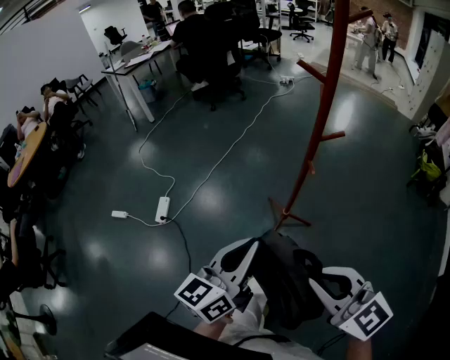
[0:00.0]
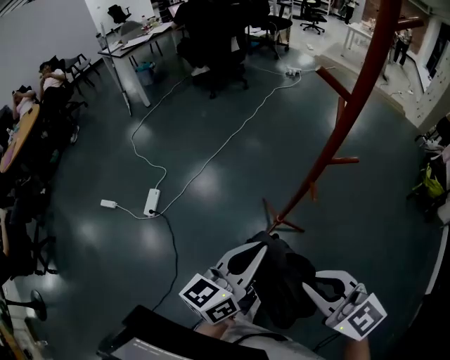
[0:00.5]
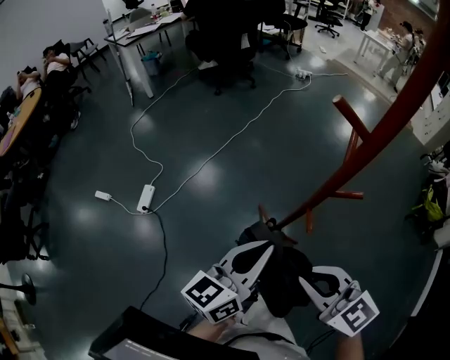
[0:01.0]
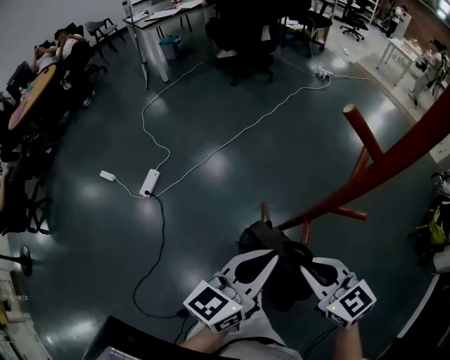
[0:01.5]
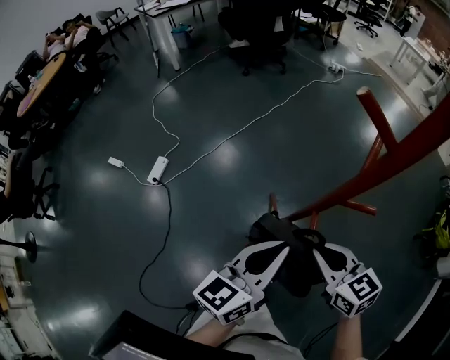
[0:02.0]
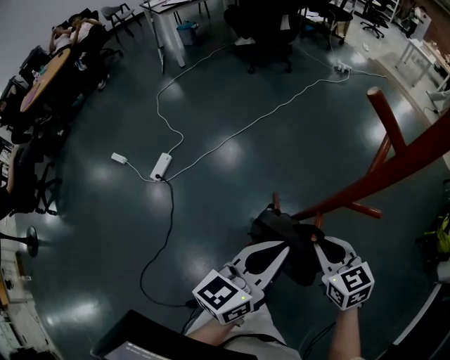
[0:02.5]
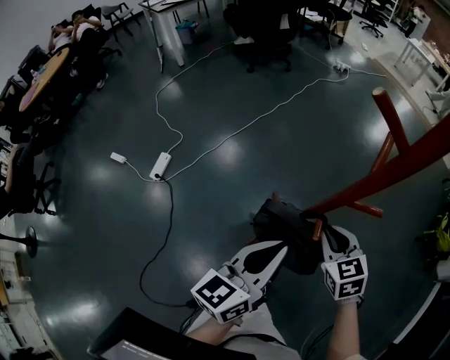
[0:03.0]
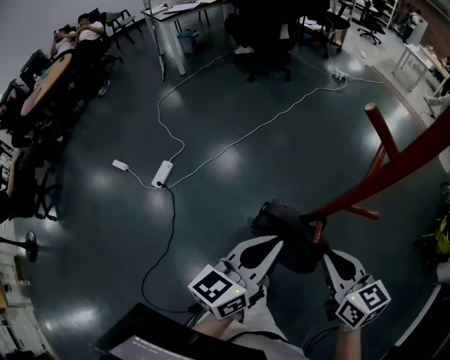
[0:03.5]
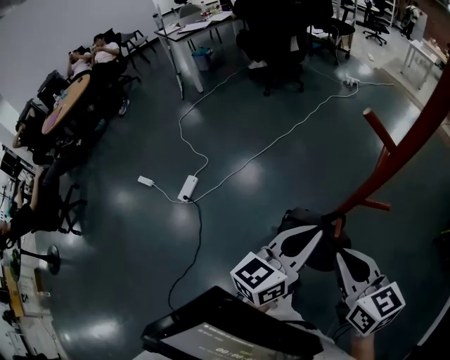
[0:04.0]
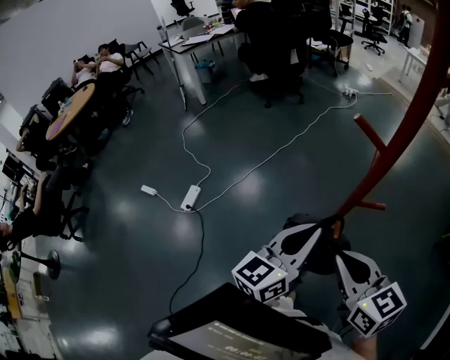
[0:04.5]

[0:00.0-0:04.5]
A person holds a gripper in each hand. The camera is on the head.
0:00.0 to 0:02.0: The left gripper goes approximately 25 cm forward and to the right. The right gripper is displaced forward, to the right and downward by roughly 35 cm, and rotates about 20 degrees.
0:02.0 to 0:04.5: The right gripper is displaced upward by some 15 cm; the left gripper shifts roughly 10 cm upward.

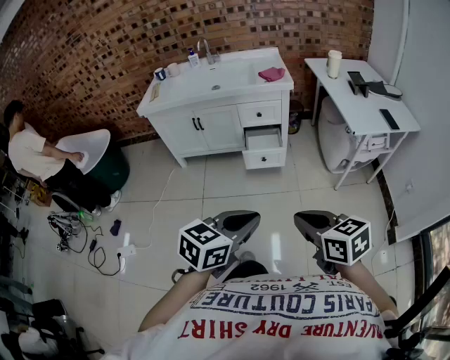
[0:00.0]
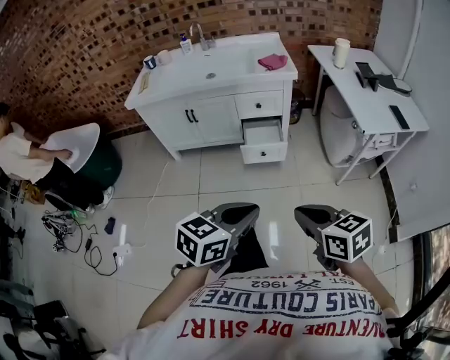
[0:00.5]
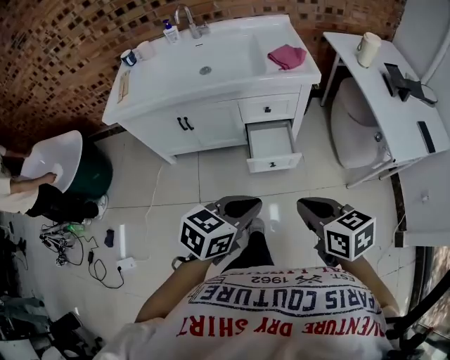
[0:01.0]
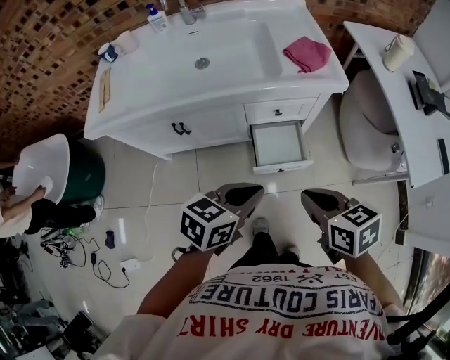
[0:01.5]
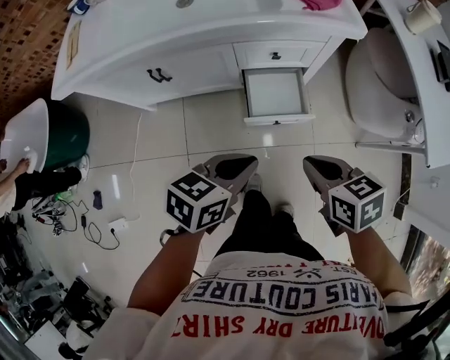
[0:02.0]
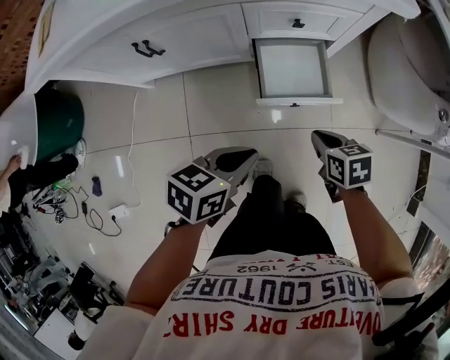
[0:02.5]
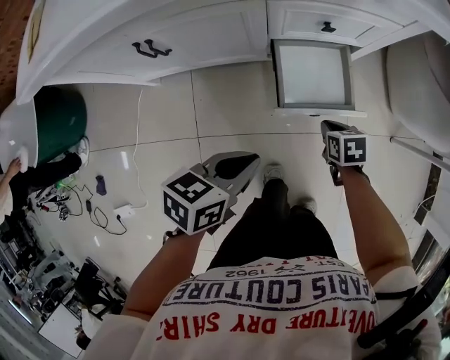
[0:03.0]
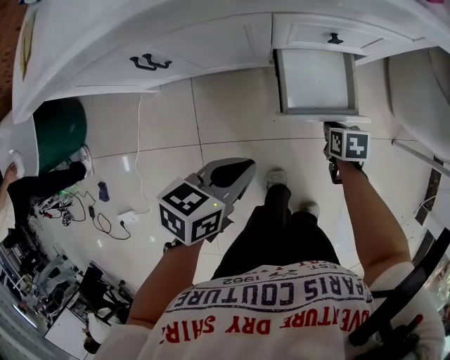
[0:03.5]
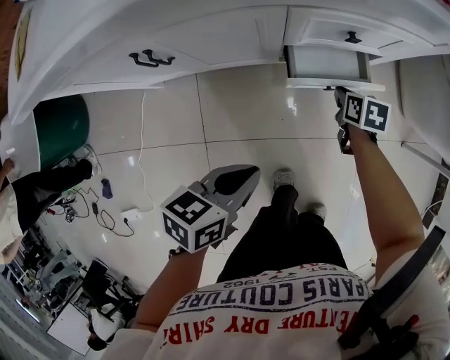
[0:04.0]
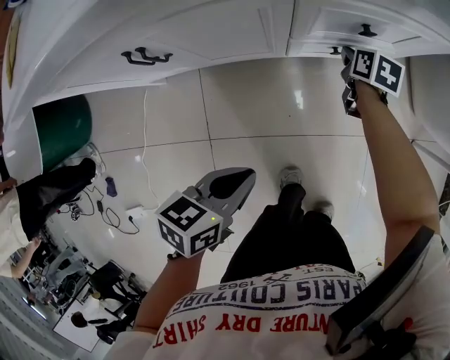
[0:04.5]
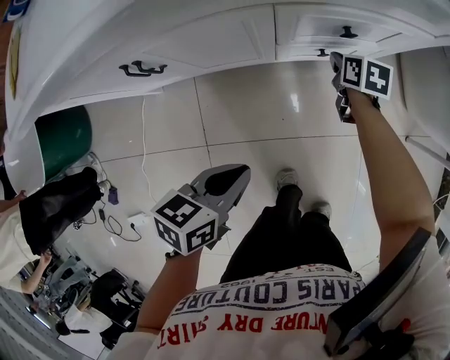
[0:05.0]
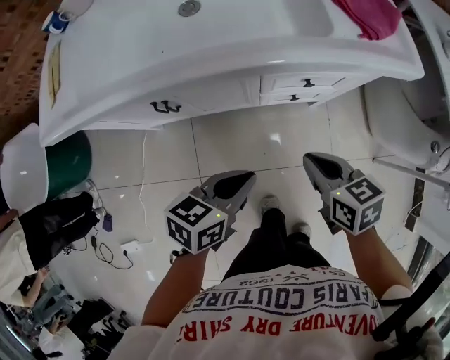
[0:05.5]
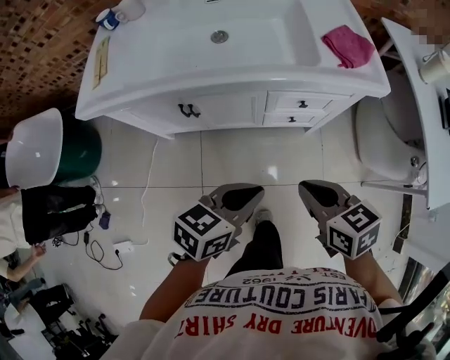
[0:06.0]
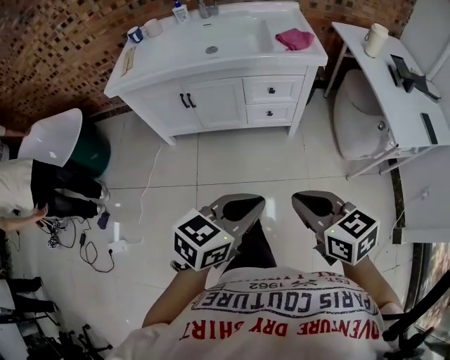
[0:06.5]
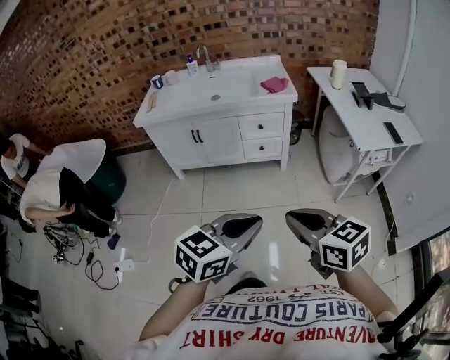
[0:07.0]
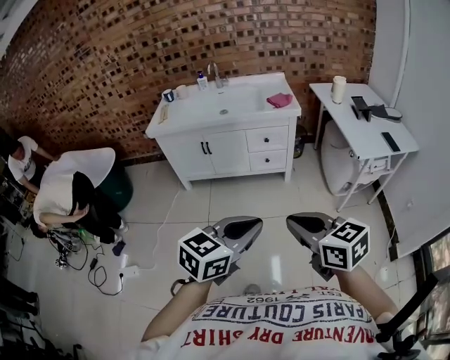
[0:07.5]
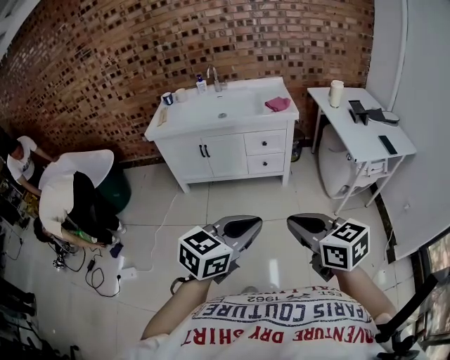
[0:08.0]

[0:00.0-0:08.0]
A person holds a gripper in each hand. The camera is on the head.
0:00.0 to 0:02.0: Both grippers are carried forward, roughly 60 cm. The right gripper swivels some 20 degrees. The left gripper rotates roughly 20 degrees.
0:02.0 to 0:04.0: The right gripper is displaced downward and forward by approximately 40 cm, and rotates some 30 degrees. Meanwhile the left gripper is displaced downward and to the left by roughly 25 cm.
0:04.0 to 0:06.0: The left gripper shifts about 25 cm upward. The right gripper moves upward, roughly 40 cm, and changes its angle by about 40 degrees.
0:06.0 to 0:08.0: The pair of grippers is taken backward, roughly 70 cm. The left gripper changes its angle by about 30 degrees. Meanwhile the right gripper rotates about 30 degrees.

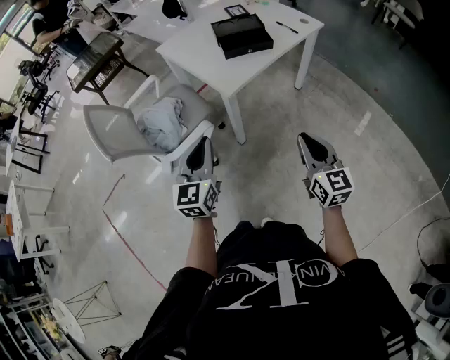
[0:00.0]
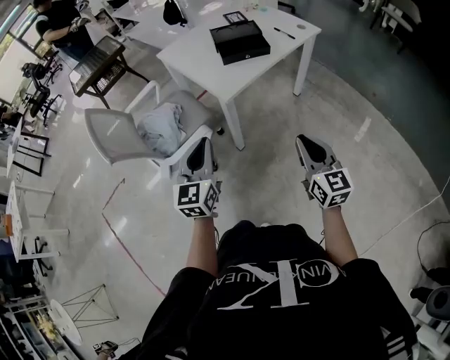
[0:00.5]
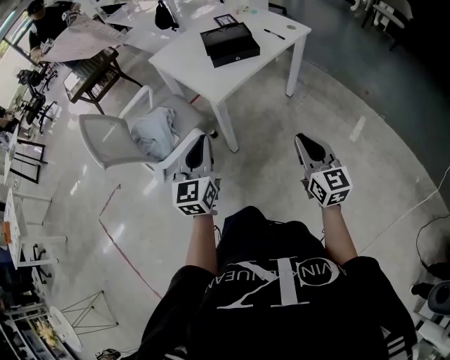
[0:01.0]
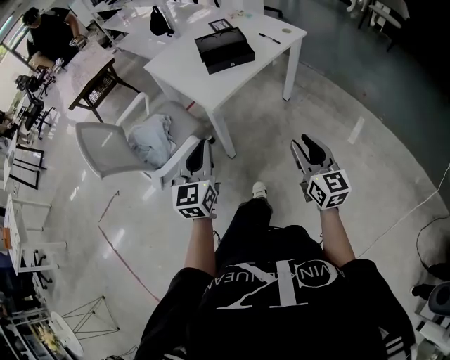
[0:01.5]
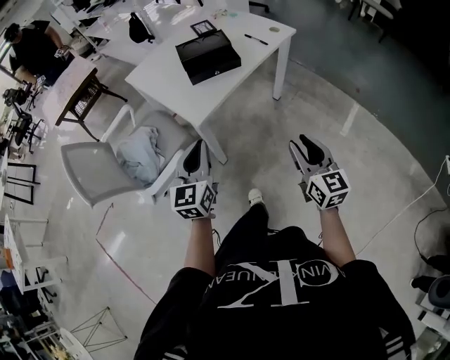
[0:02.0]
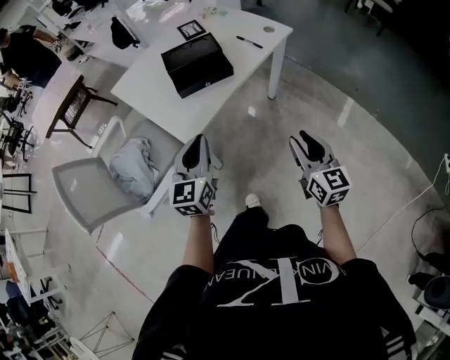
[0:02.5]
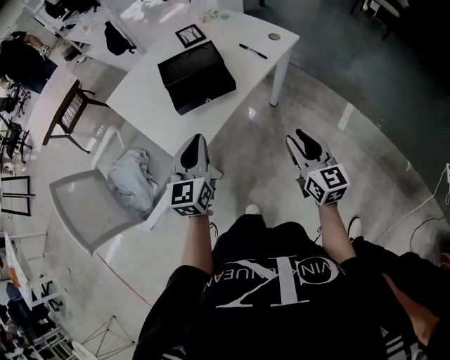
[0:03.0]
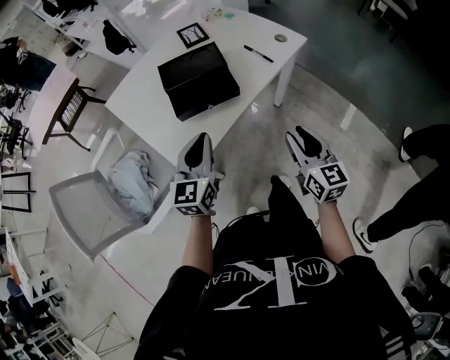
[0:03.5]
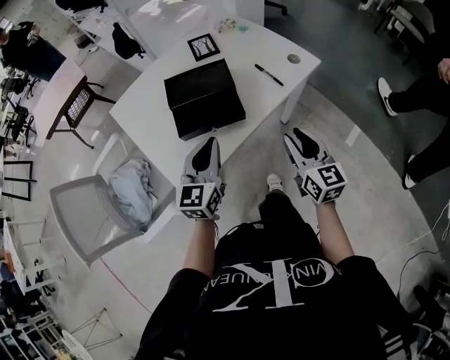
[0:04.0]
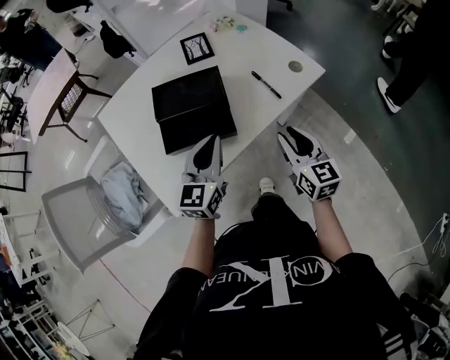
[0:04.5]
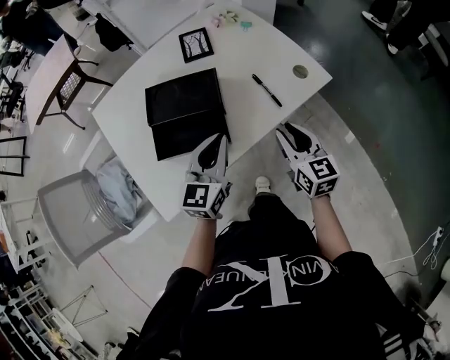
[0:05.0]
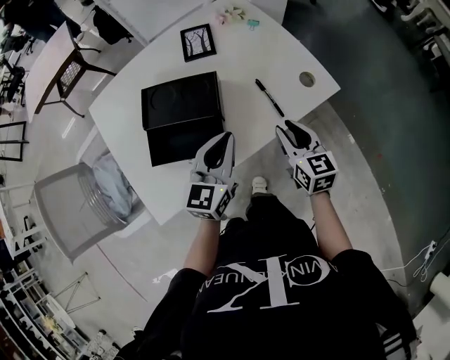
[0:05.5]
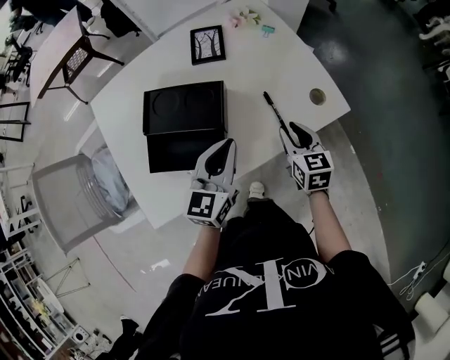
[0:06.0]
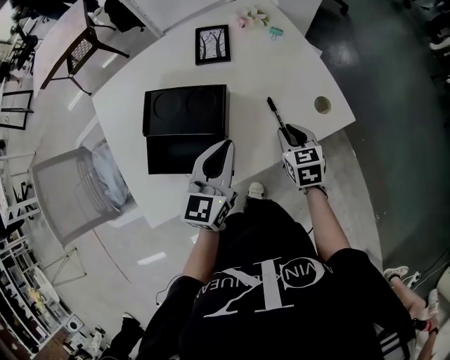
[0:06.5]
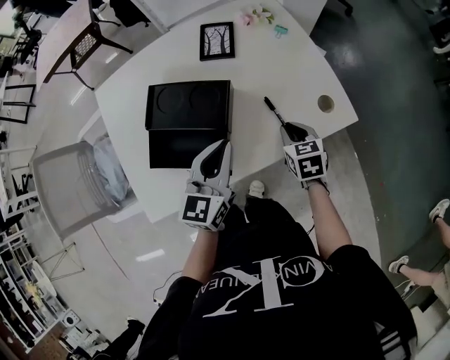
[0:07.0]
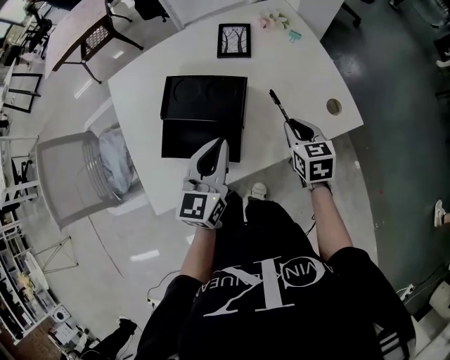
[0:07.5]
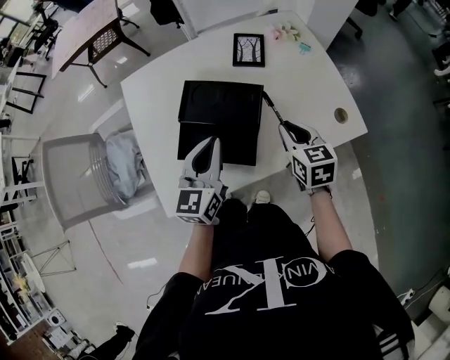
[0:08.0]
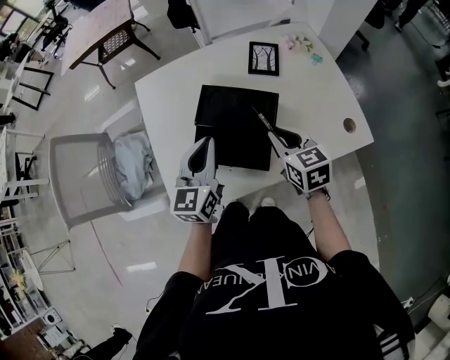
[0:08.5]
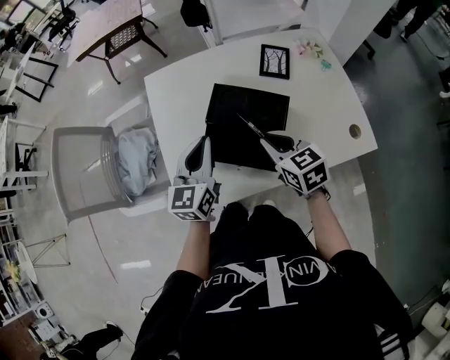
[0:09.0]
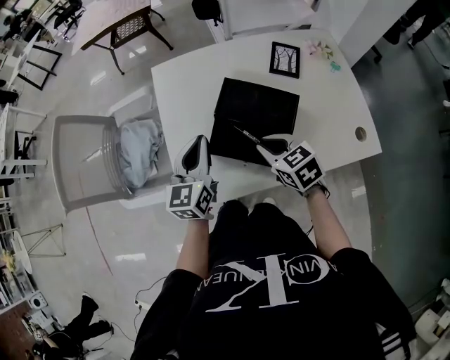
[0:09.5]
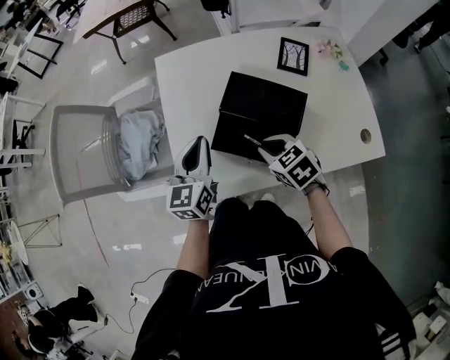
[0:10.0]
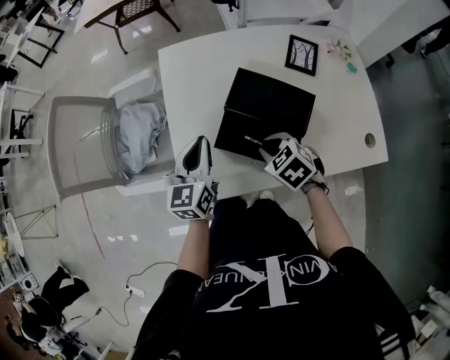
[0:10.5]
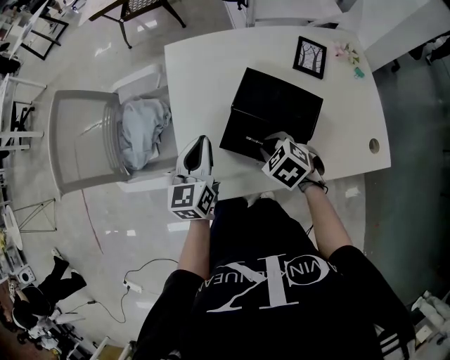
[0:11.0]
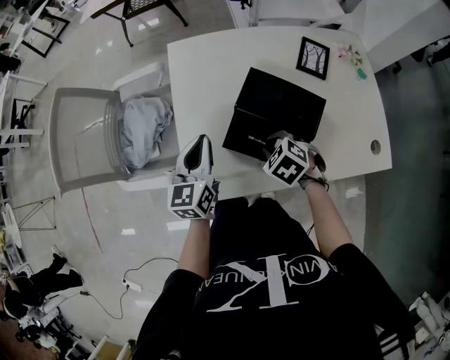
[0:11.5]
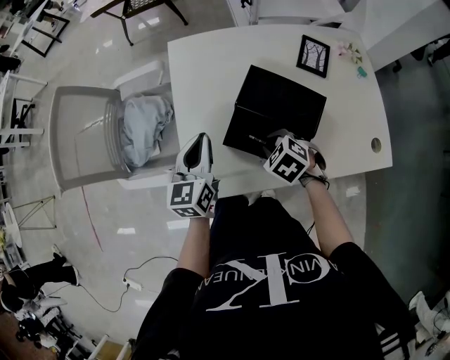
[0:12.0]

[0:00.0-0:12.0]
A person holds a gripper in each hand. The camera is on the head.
0:00.0 to 0:02.0: The right gripper shifts roughly 10 cm to the right and forward, while the left gripper goes some 15 cm forward and to the right.
0:02.0 to 0:04.0: The grippers both shift forward by some 30 cm.
0:04.0 to 0:06.0: The right gripper is displaced forward and downward by approximately 30 cm, and swivels roughly 20 degrees. The left gripper travels forward and to the right by about 20 cm.
0:06.0 to 0:08.0: The left gripper heads to the left, covering about 15 cm; the right gripper heads to the left and upward, covering about 10 cm.
0:08.0 to 0:10.0: The right gripper changes place by about 20 cm, and swivels some 40 degrees, while the left gripper shifts by roughly 15 cm.
0:10.0 to 0:12.0: The right gripper ends up some 5 cm from where it was, and turns by roughly 20 degrees.

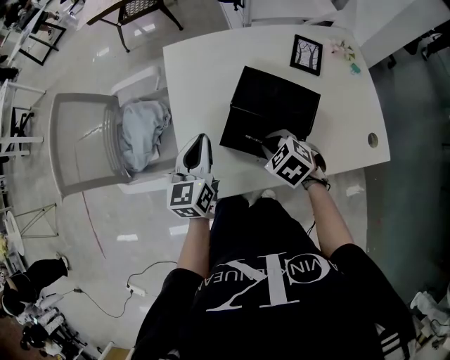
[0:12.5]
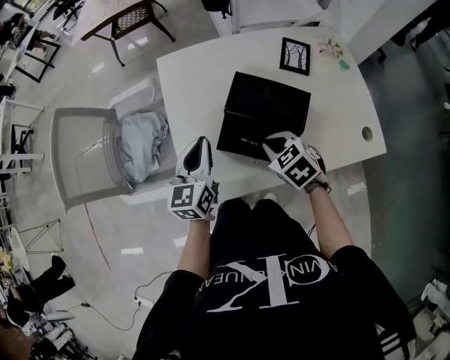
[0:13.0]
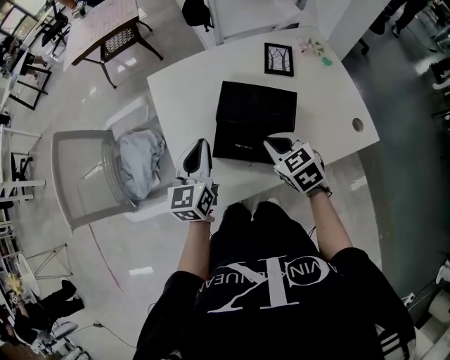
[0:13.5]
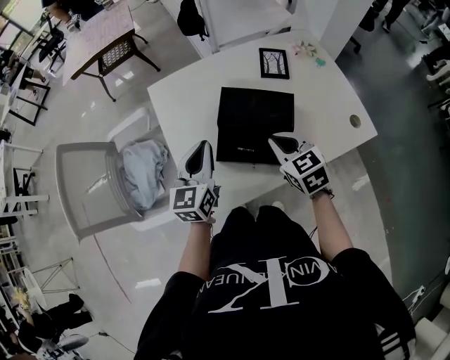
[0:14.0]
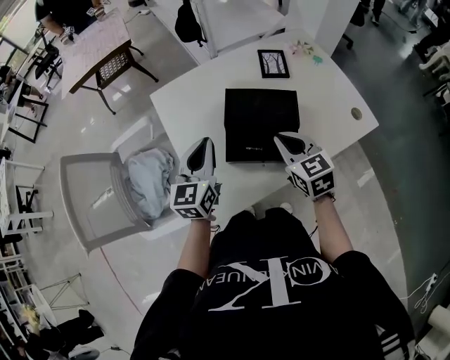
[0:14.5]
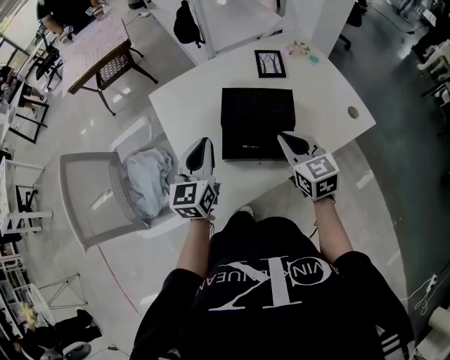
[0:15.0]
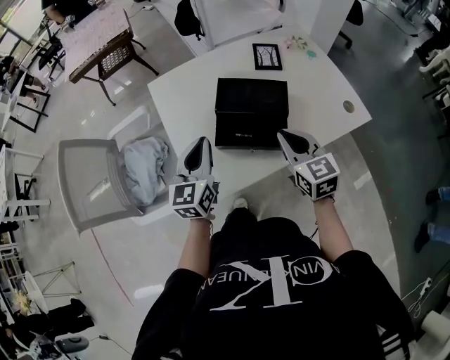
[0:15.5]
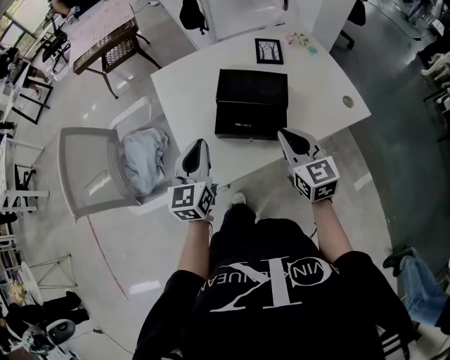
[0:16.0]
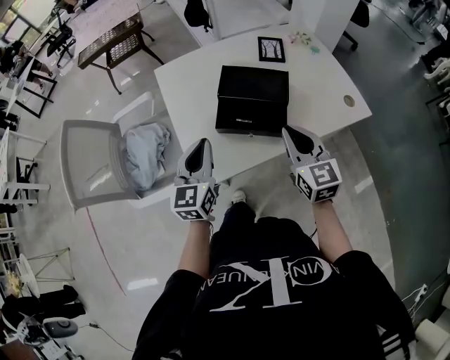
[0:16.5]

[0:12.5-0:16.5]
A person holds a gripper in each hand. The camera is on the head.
0:12.5 to 0:14.5: The right gripper travels upward by roughly 10 cm, and points its fingers approximately 30 degrees further upward. Meanwhile the left gripper shifts by approximately 5 cm, and rotates approximately 20 degrees.
0:14.5 to 0:16.5: Both grippers travel together backward, about 10 cm.
